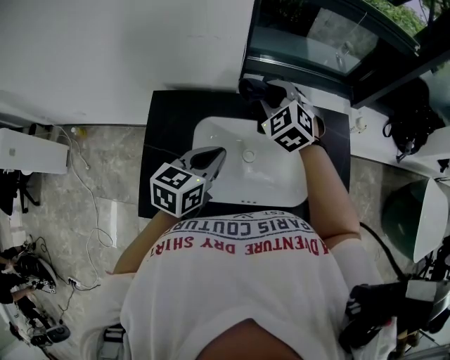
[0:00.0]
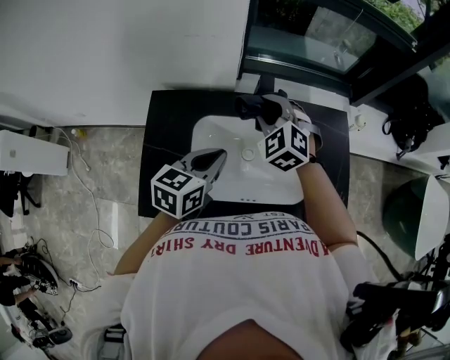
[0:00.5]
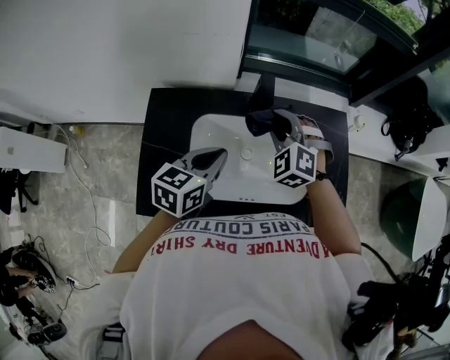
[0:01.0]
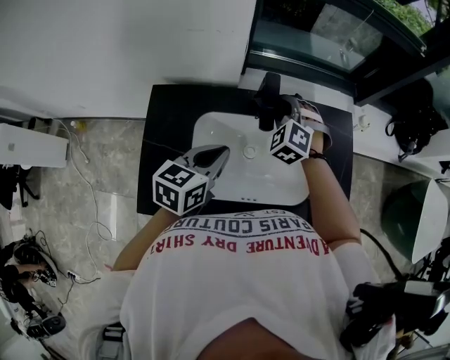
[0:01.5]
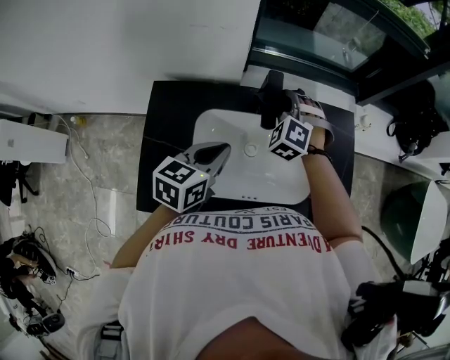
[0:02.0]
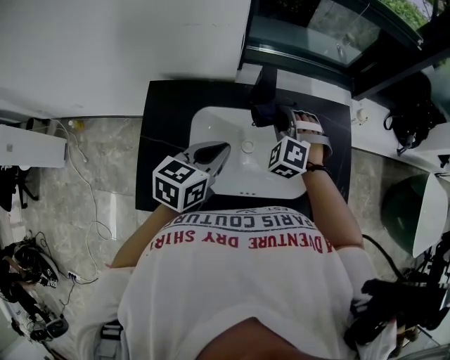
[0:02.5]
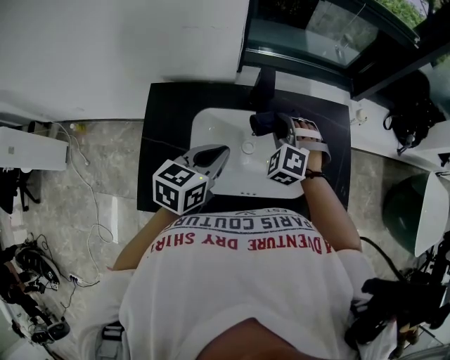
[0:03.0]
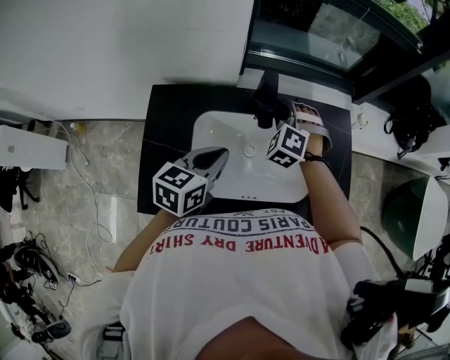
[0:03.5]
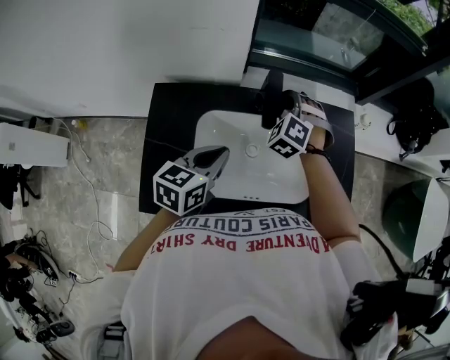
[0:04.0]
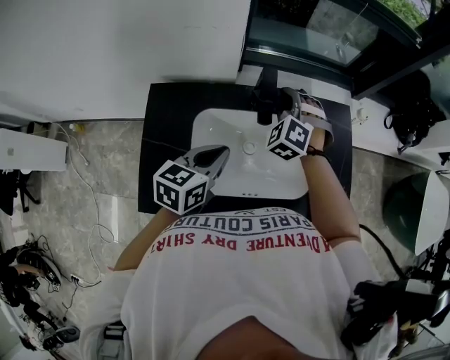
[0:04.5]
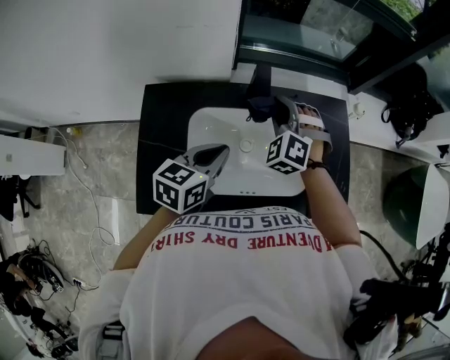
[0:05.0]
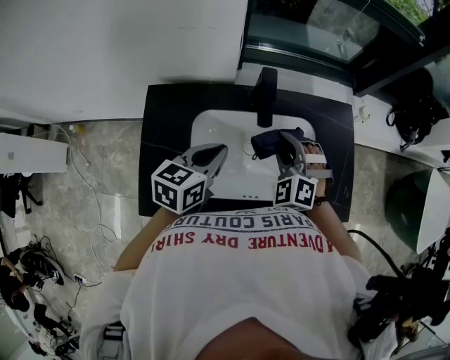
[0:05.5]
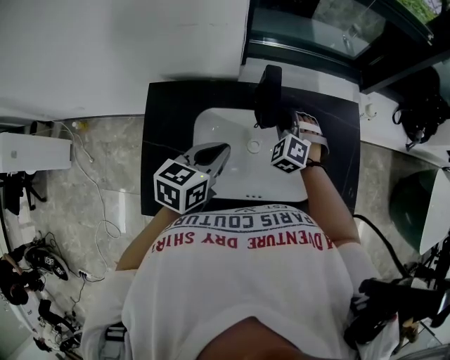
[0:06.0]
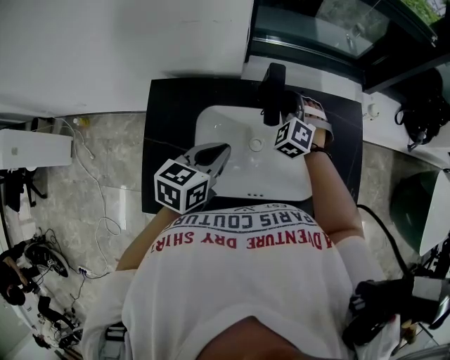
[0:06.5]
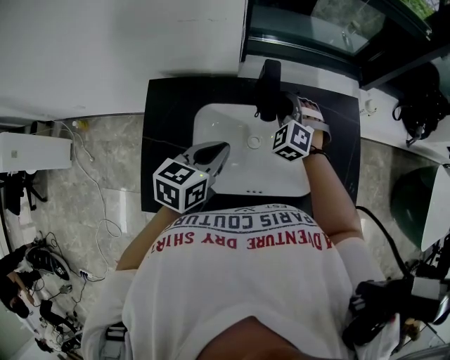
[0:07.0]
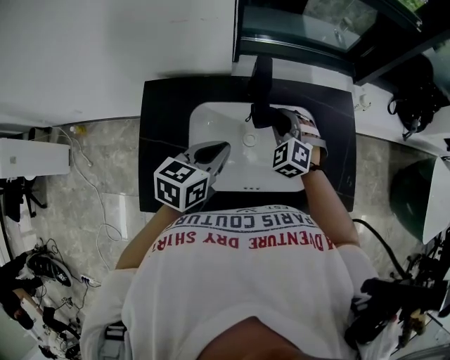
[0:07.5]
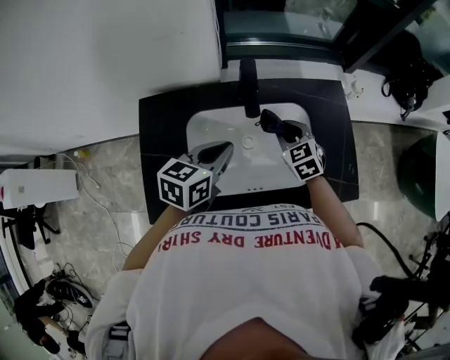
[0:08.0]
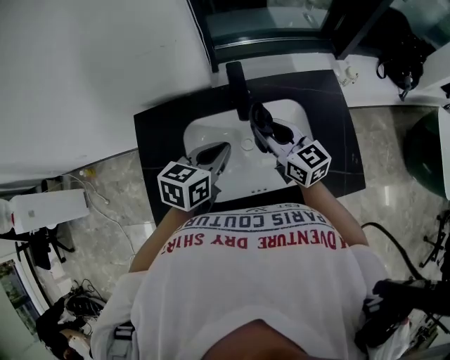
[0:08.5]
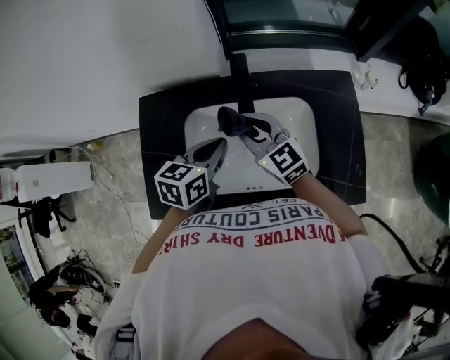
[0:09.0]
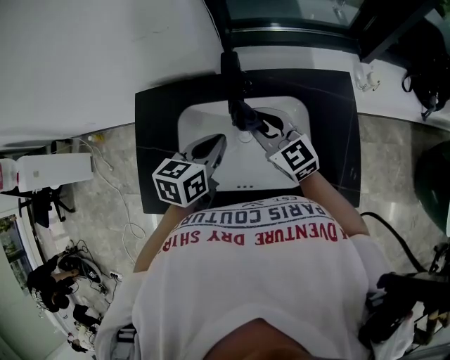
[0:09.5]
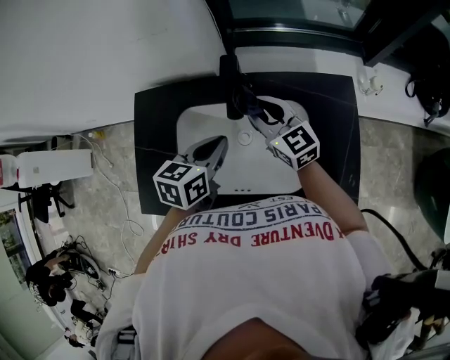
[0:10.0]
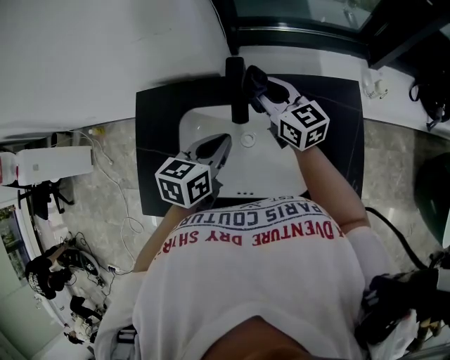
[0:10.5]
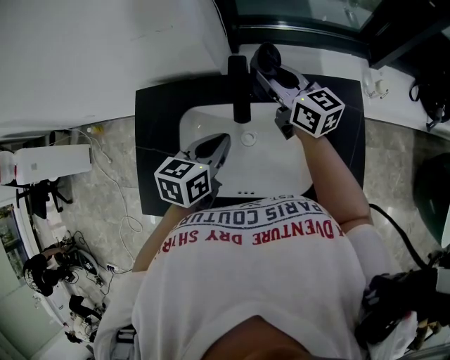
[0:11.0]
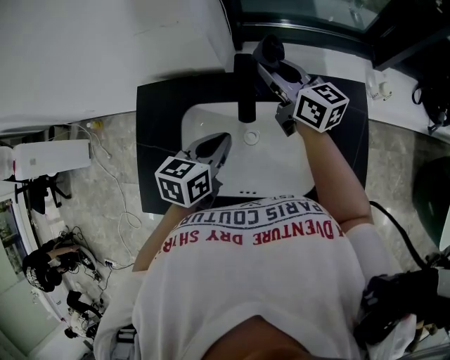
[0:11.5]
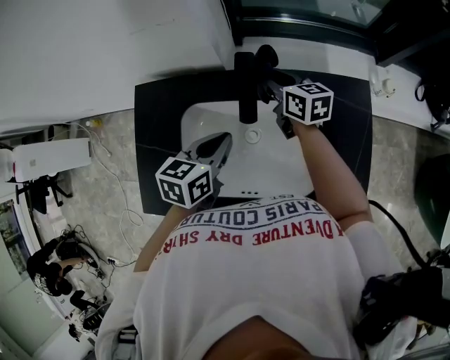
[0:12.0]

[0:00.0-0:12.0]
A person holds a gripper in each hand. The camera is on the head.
0:00.0 to 0:02.0: The right gripper heads downward, covering about 5 cm, and turns by roughly 20 degrees.
0:02.0 to 0:04.0: The right gripper goes backward and returns, roughly 5 cm each way.
0:04.0 to 0:06.0: The right gripper moves downward, some 10 cm, and goes backward and returns, approximately 10 cm each way.
0:06.0 to 0:08.0: The right gripper moves backward and to the right, some 10 cm, and twists roughly 40 degrees clockwise, seen from behind.
0:08.0 to 0:10.0: The left gripper travels to the right by about 5 cm, while the right gripper heads upward and forward, covering about 10 cm, goes to the left and returns, some 10 cm each way, and changes its angle by some 40 degrees.
0:10.0 to 0:12.0: The right gripper travels forward and downward by some 15 cm, and turns by about 30 degrees.

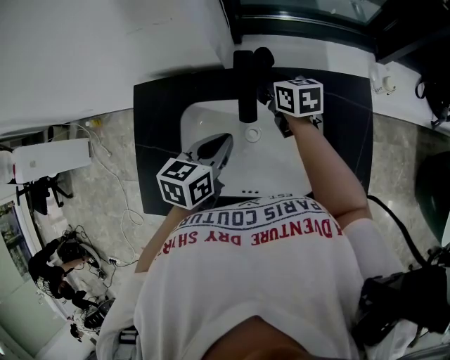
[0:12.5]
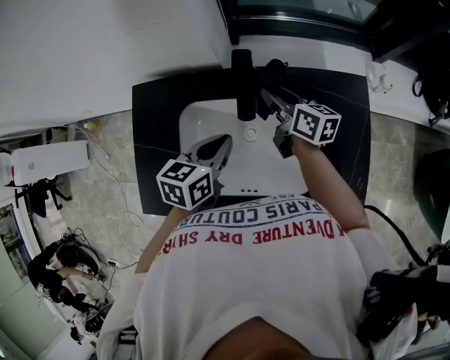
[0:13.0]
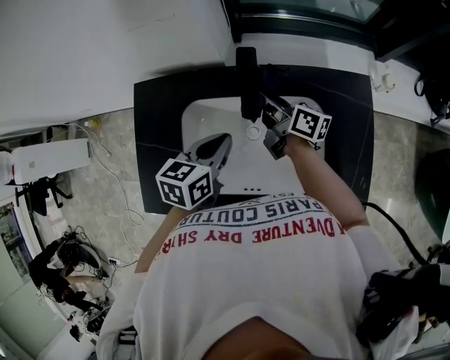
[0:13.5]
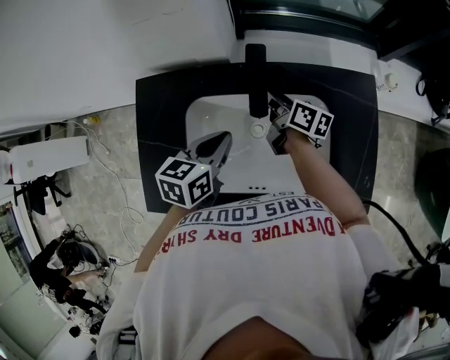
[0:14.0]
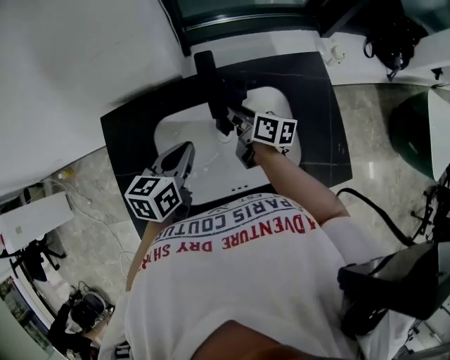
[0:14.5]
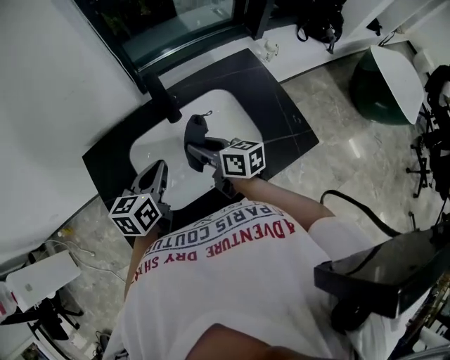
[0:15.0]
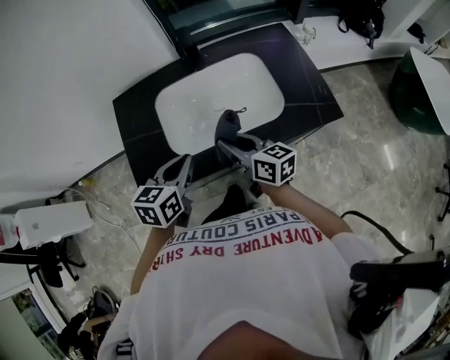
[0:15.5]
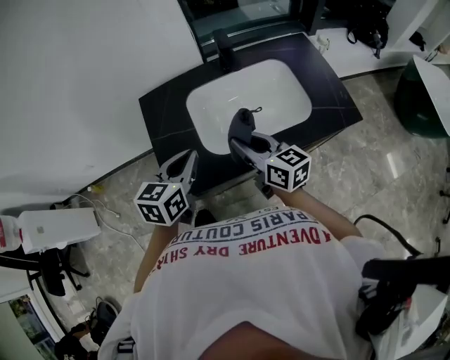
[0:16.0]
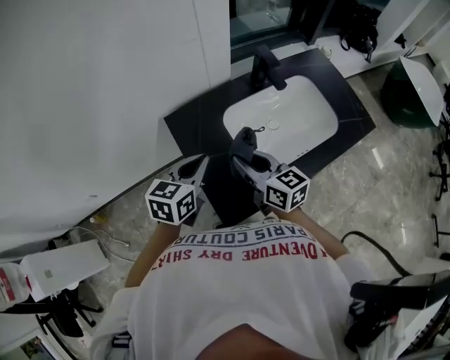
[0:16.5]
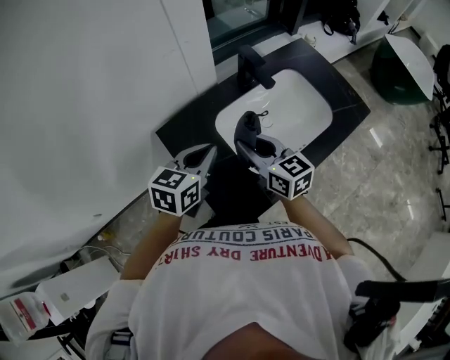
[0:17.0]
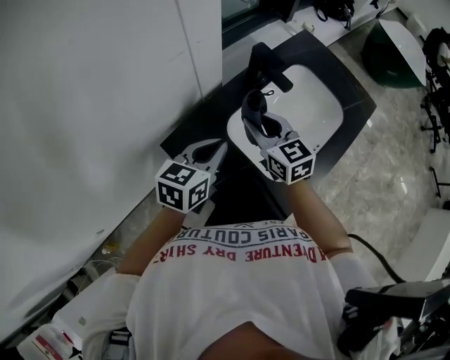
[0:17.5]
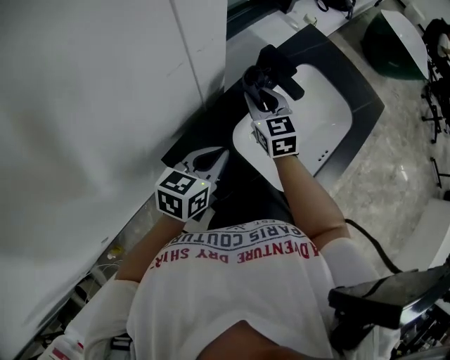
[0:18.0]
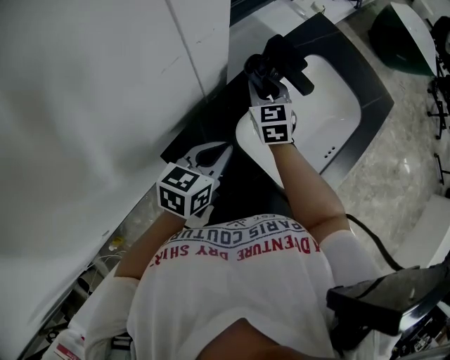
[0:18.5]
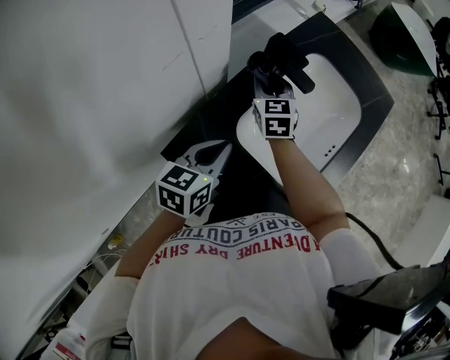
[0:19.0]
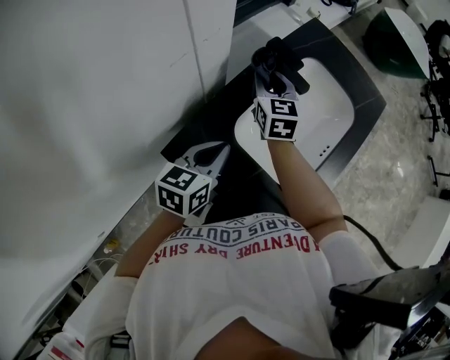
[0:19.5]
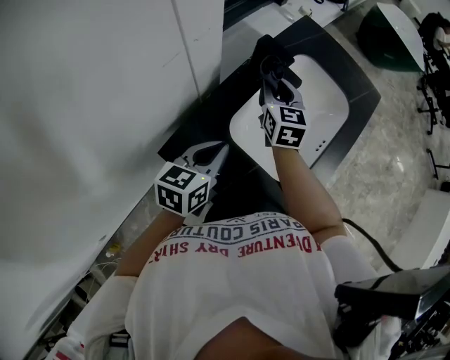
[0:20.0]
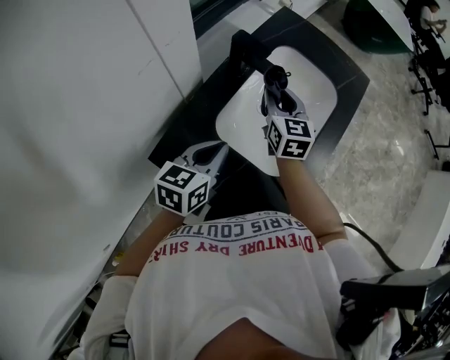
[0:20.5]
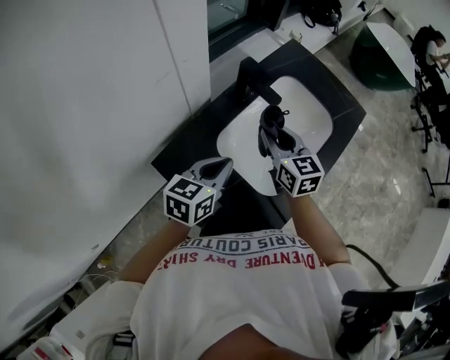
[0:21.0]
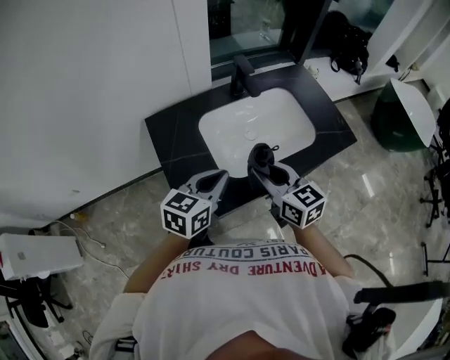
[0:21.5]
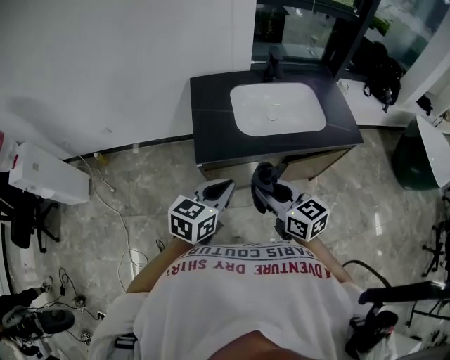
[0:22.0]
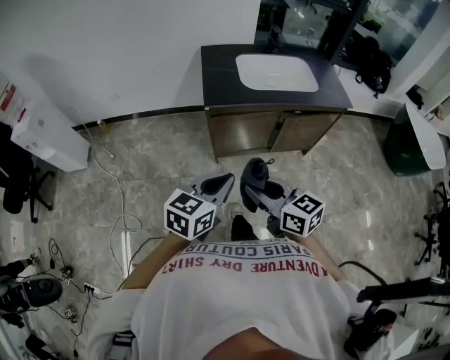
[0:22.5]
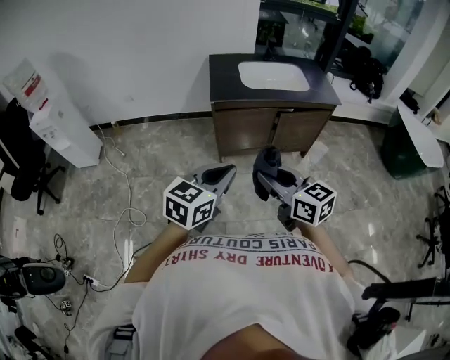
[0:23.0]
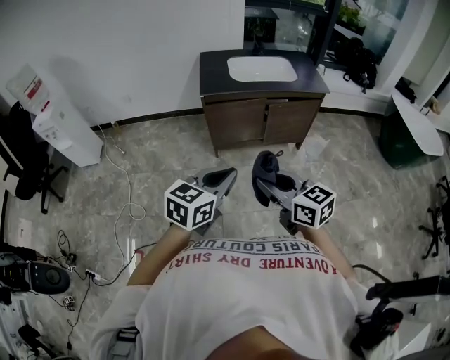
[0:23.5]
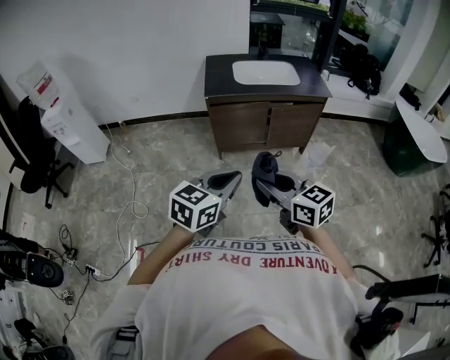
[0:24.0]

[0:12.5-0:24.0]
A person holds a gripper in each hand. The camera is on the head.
0:12.5 to 0:14.5: The right gripper is displaced backward by about 10 cm, and rotates approximately 30 degrees; the left gripper moves to the left, approximately 5 cm.
0:14.5 to 0:16.5: The left gripper is displaced to the left and backward by about 25 cm, and swivels roughly 20 degrees; the right gripper goes some 40 cm to the left, backward and upward, and swivels roughly 30 degrees.
0:16.5 to 0:18.5: The left gripper shifts by roughly 20 cm, and turns by approximately 30 degrees. The right gripper moves approximately 35 cm, and rotates roughly 50 degrees.
0:18.5 to 0:20.0: The right gripper shifts some 10 cm to the right and upward.
0:20.0 to 0:22.0: Both grippers are carried approximately 60 cm. The left gripper turns by roughly 40 degrees; the right gripper changes its angle by approximately 70 degrees.
0:22.0 to 0:24.0: The pair of grippers is taken backward, some 50 cm.

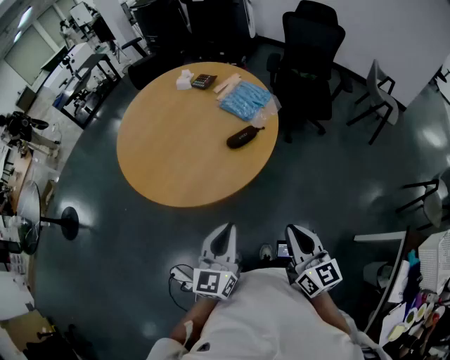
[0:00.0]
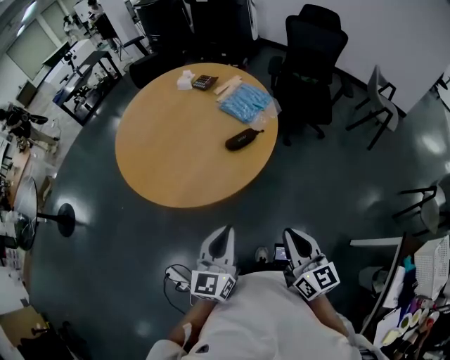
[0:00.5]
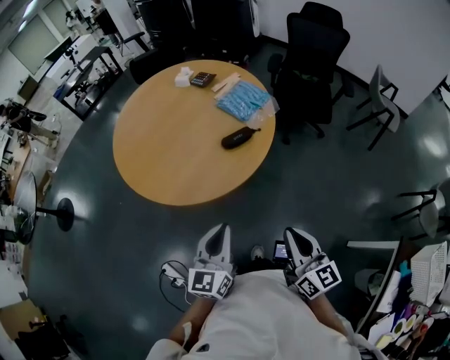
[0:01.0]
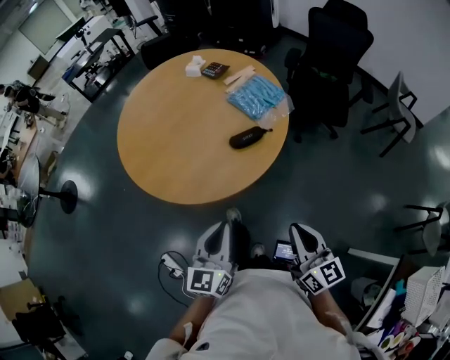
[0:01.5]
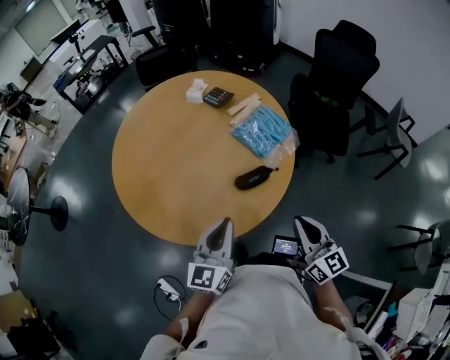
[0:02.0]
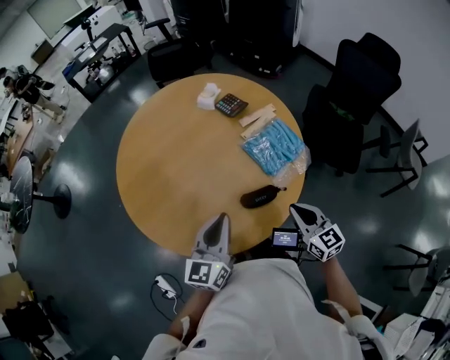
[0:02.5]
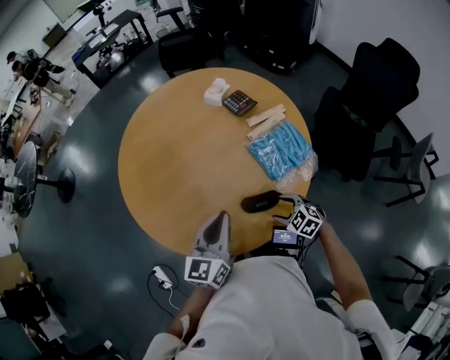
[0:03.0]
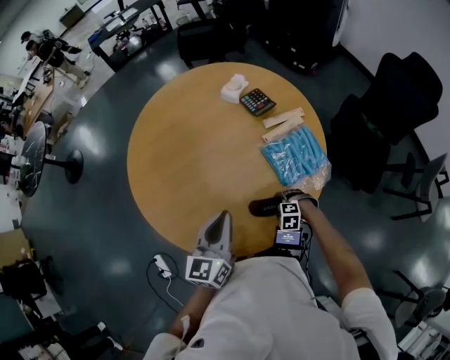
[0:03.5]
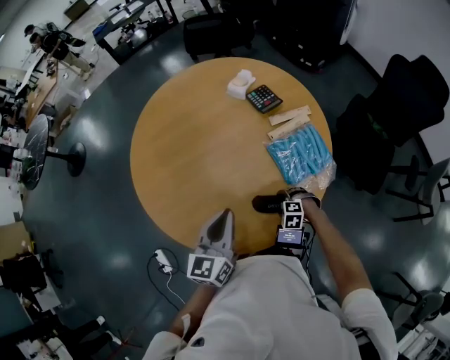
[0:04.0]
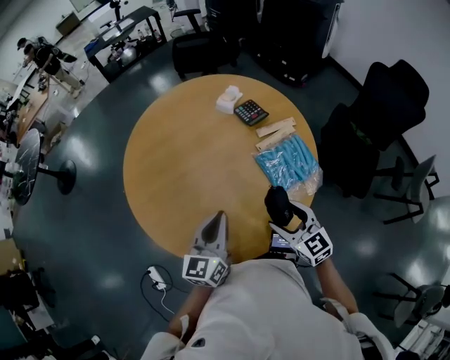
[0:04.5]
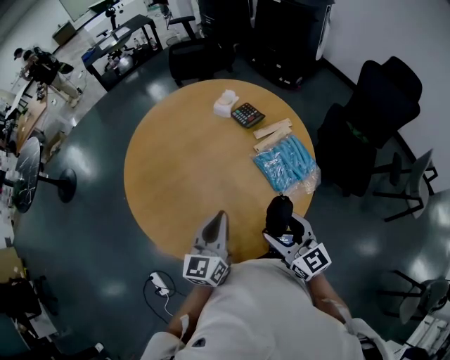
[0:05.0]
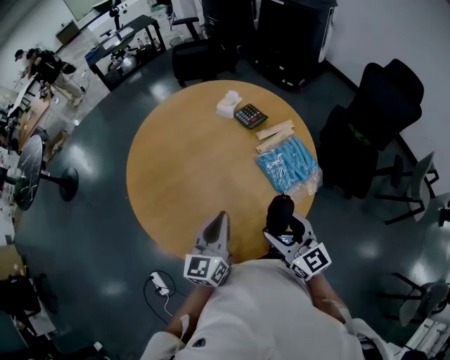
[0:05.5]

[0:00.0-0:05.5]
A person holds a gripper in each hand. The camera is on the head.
0:00.0 to 0:02.0: The grippers both shift forward by approximately 25 cm.
0:02.0 to 0:03.5: The right gripper travels downward by some 35 cm, angles its fingers downward, by about 70 degrees, and opens up, while the left gripper moves about 15 cm.
0:03.5 to 0:05.5: The right gripper travels upward by roughly 30 cm, and angles its fingers upward, by approximately 70 degrees.
